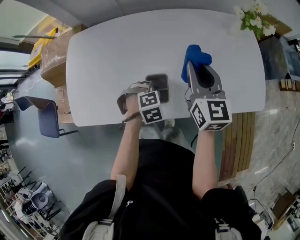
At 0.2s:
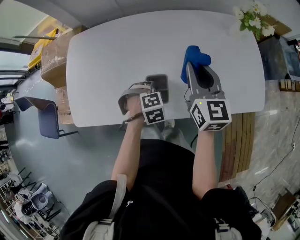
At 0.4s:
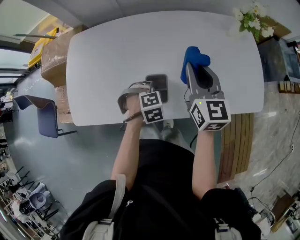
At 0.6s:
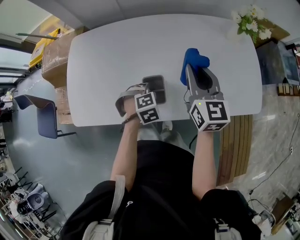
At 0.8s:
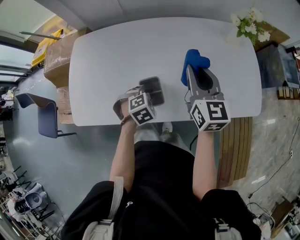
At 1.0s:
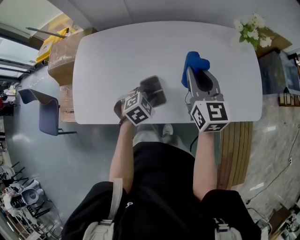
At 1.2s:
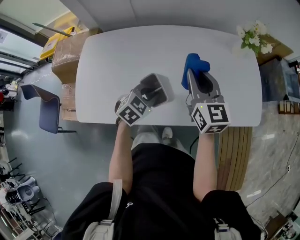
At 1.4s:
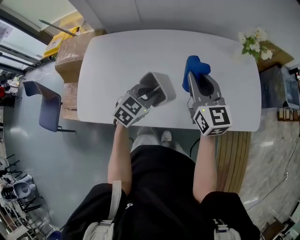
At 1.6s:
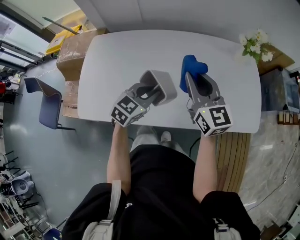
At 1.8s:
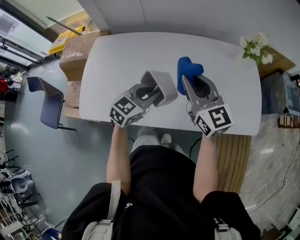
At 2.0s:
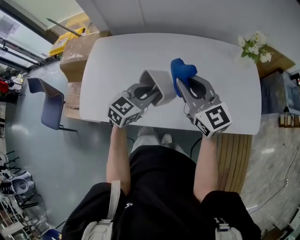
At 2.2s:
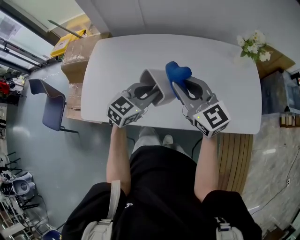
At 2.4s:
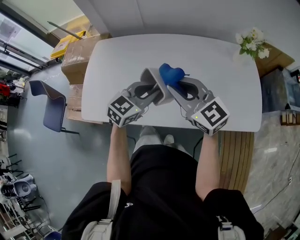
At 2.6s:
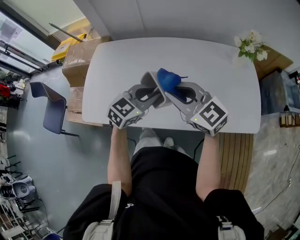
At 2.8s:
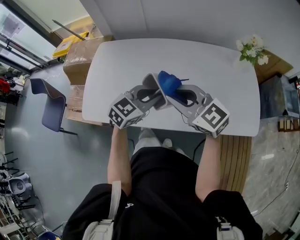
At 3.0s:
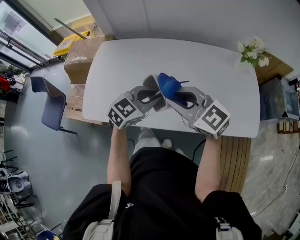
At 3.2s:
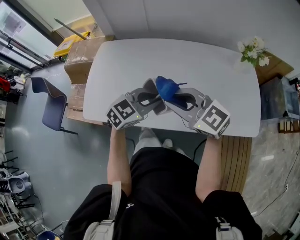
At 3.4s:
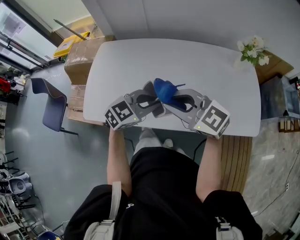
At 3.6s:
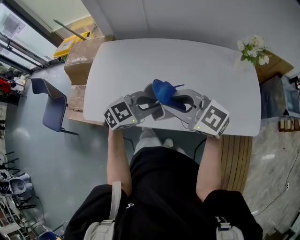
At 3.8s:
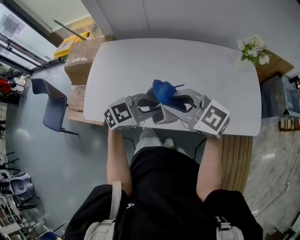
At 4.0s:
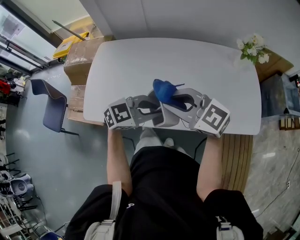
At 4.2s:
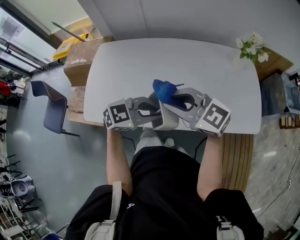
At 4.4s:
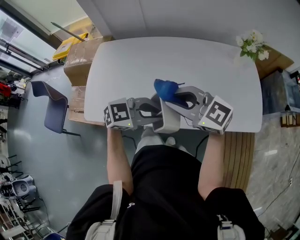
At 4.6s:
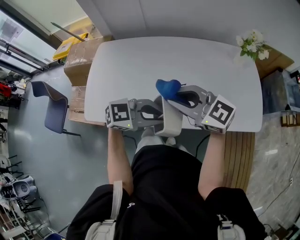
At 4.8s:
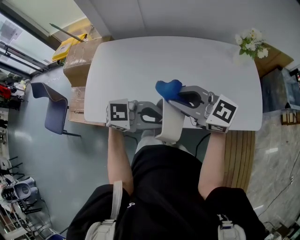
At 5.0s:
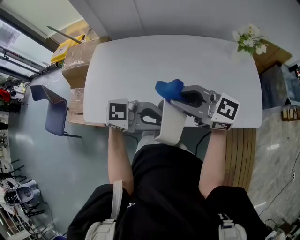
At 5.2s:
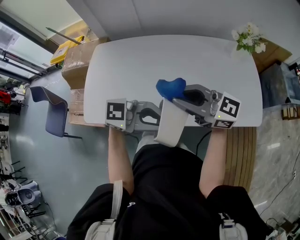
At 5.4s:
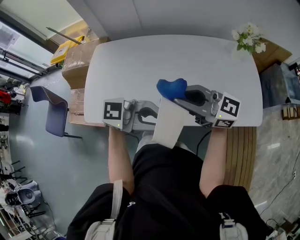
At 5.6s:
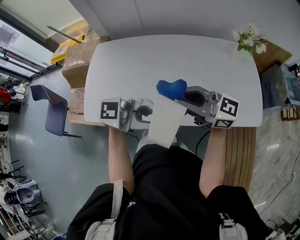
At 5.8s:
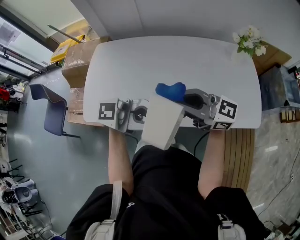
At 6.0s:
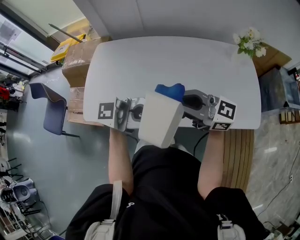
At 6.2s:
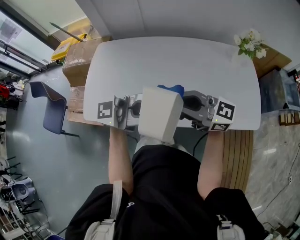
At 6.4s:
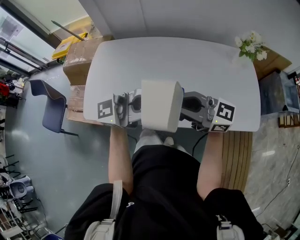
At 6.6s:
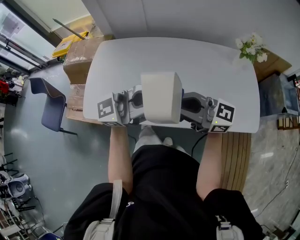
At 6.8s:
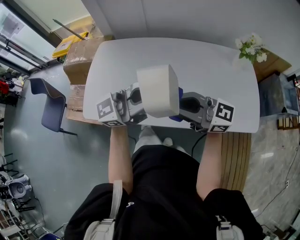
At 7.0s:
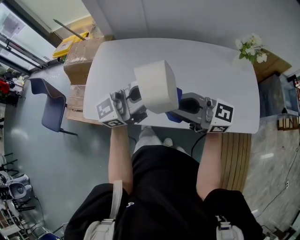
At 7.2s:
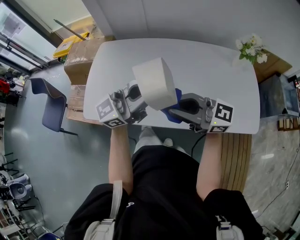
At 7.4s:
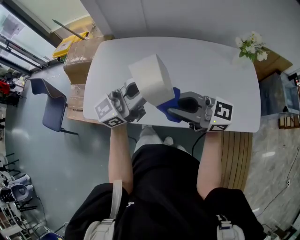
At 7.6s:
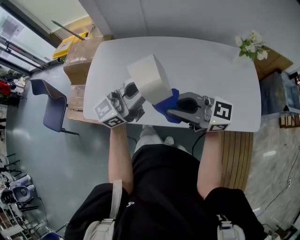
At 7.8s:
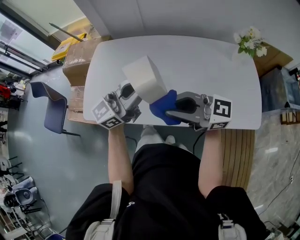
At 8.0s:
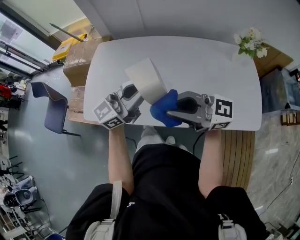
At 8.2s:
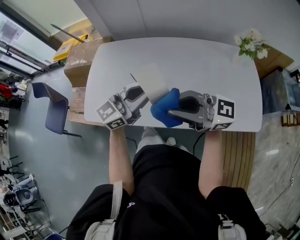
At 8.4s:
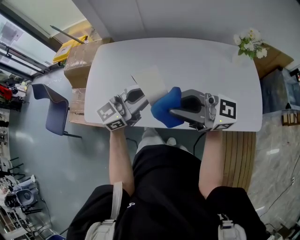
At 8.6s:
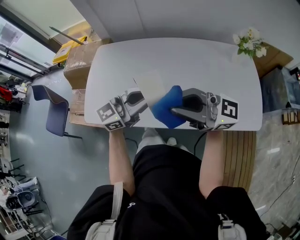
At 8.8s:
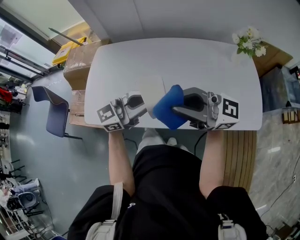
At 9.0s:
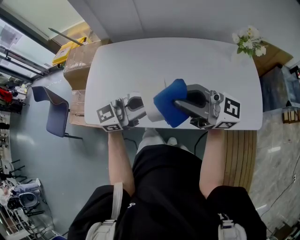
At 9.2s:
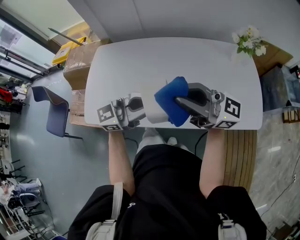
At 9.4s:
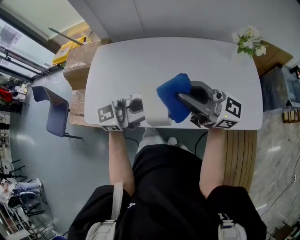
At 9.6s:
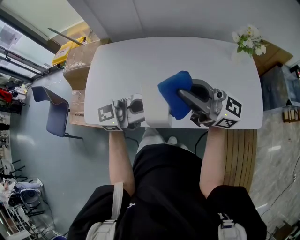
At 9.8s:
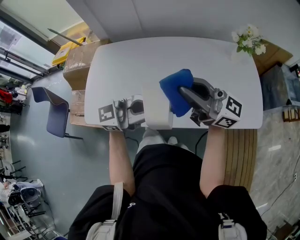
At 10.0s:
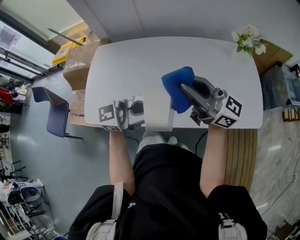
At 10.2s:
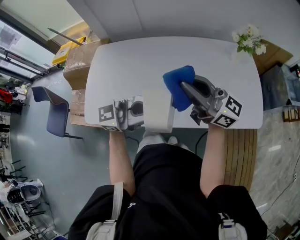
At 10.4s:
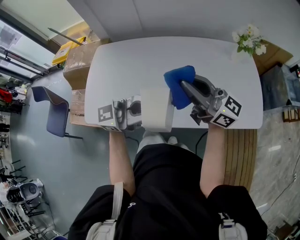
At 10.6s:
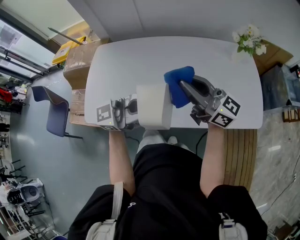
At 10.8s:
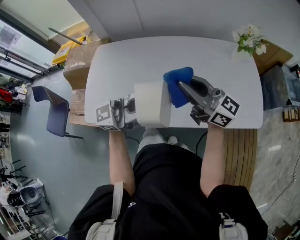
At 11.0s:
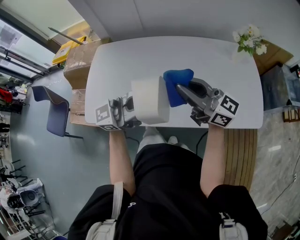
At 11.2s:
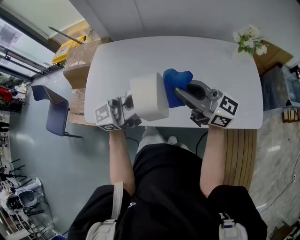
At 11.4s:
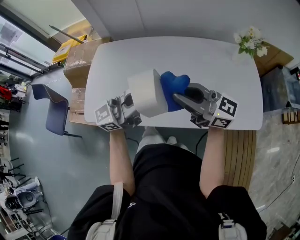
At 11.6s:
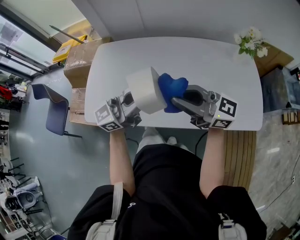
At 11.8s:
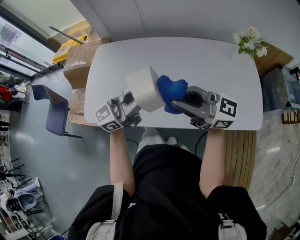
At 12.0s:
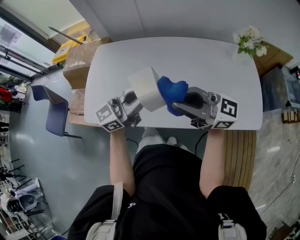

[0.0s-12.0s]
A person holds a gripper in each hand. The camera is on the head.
0.0s to 1.6s: The right gripper travels upward by some 5 cm. The left gripper goes approximately 15 cm upward, and tips its fingers upward by approximately 40 degrees.
1.6s to 3.0s: The left gripper heads upward, covering some 5 cm. The right gripper goes some 15 cm backward and to the left, and turns by about 40 degrees.
3.0s to 4.4s: The left gripper moves roughly 10 cm, and rotates approximately 30 degrees.
4.4s to 6.0s: The right gripper swivels about 20 degrees; the left gripper is displaced upward by approximately 10 cm, and angles its fingers upward, by some 40 degrees.
6.0s to 7.6s: The left gripper shifts by roughly 10 cm, and swivels approximately 40 degrees.
7.6s to 9.0s: The right gripper is displaced upward by about 5 cm. The left gripper shifts some 5 cm downward, and changes its angle by about 20 degrees.
9.0s to 10.4s: The left gripper shifts by approximately 5 cm. Meanwhile the right gripper changes place by roughly 5 cm, and rotates approximately 20 degrees.
10.4s to 12.0s: The right gripper shifts by roughly 5 cm, and swivels about 20 degrees. Meanwhile the left gripper changes place by roughly 10 cm, and rotates approximately 30 degrees.

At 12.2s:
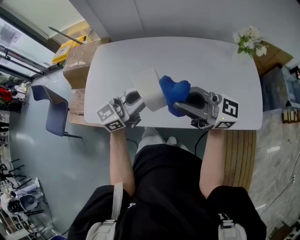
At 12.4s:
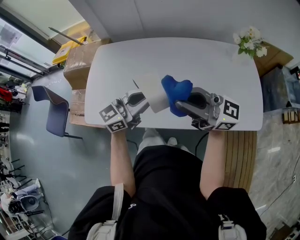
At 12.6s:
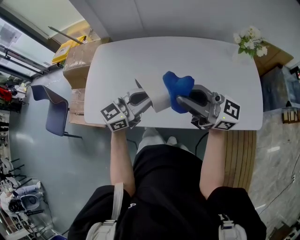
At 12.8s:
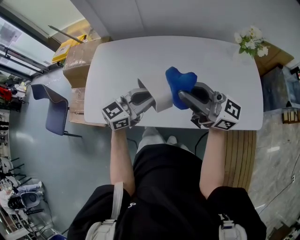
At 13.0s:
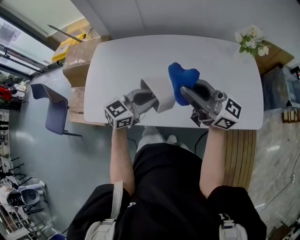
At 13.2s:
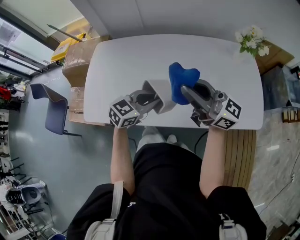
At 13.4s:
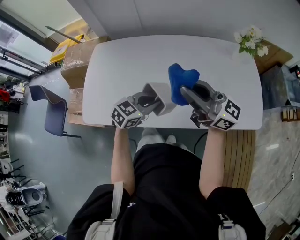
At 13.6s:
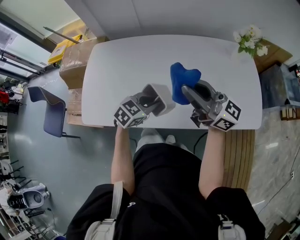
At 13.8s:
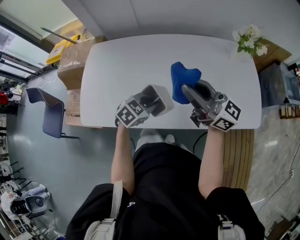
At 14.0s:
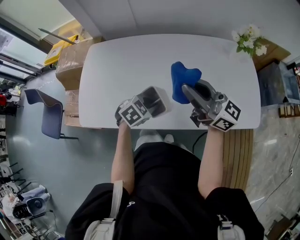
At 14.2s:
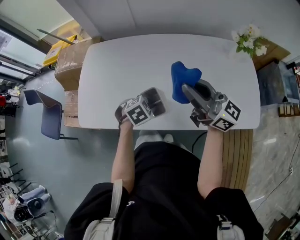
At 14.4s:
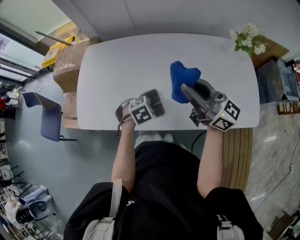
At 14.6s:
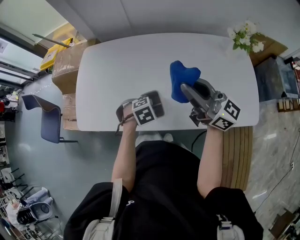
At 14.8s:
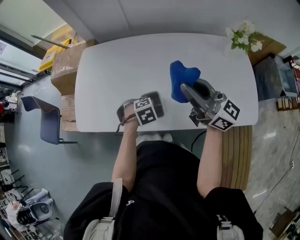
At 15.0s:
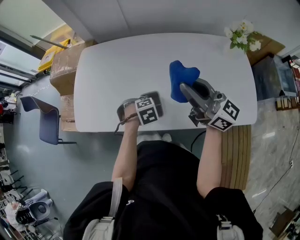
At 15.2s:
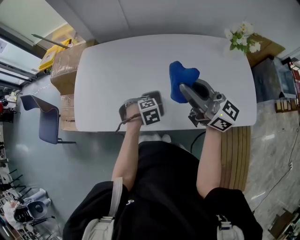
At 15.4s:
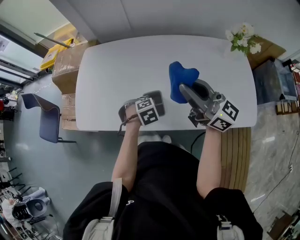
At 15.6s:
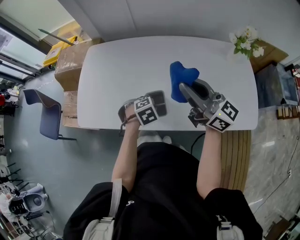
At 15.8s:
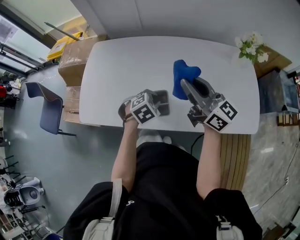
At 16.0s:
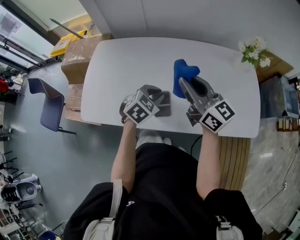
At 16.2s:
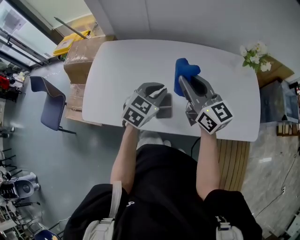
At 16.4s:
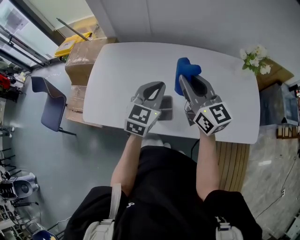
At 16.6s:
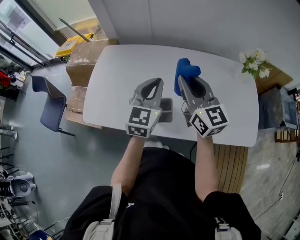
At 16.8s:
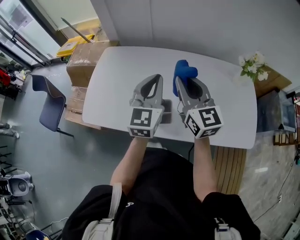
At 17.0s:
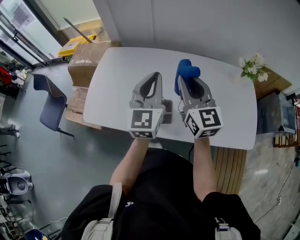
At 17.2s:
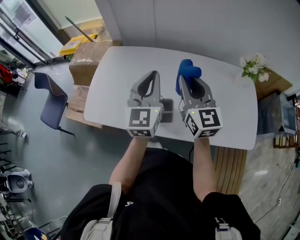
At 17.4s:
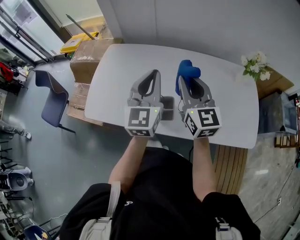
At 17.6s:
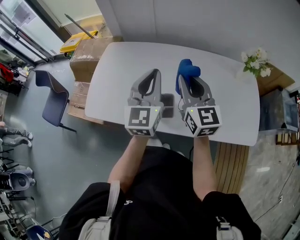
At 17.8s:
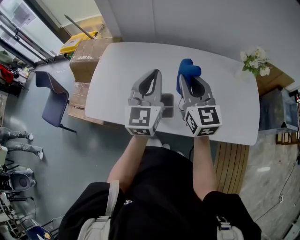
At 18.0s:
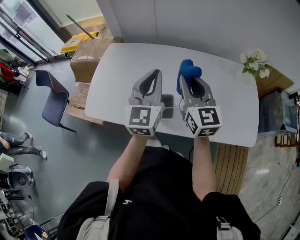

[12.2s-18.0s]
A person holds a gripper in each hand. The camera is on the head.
12.2s to 13.6s: The right gripper ends up roughly 5 cm from where it was, and swivels about 20 degrees. The left gripper shifts some 15 cm downward, and tilts its fingers about 50 degrees downward.
13.6s to 15.0s: The left gripper shifts roughly 10 cm downward, and tilts its fingers about 40 degrees downward.
15.0s to 16.6s: The right gripper changes place by roughly 5 cm, and swivels about 30 degrees. Meanwhile the left gripper shifts some 25 cm upward, and tilts its fingers about 70 degrees upward.
16.6s to 18.0s: The left gripper moves upward, approximately 5 cm.

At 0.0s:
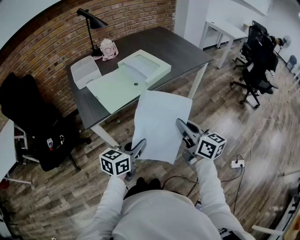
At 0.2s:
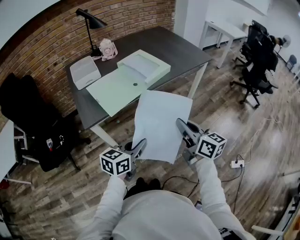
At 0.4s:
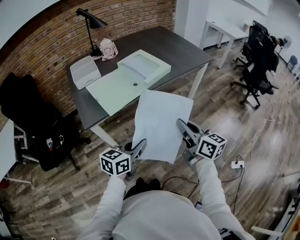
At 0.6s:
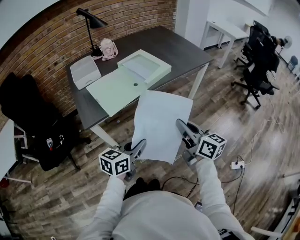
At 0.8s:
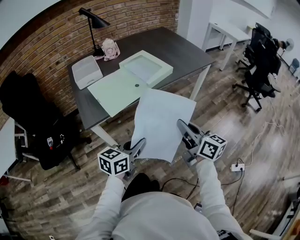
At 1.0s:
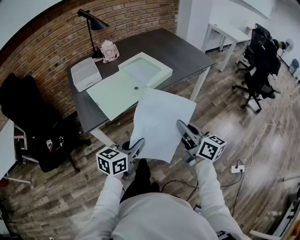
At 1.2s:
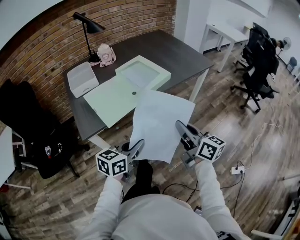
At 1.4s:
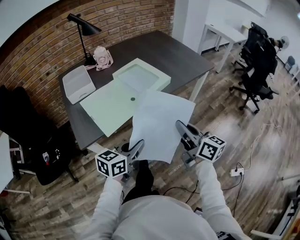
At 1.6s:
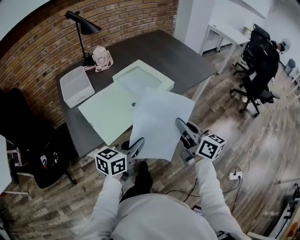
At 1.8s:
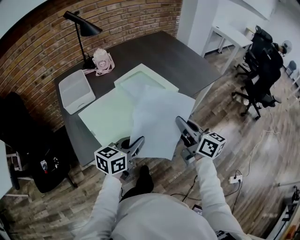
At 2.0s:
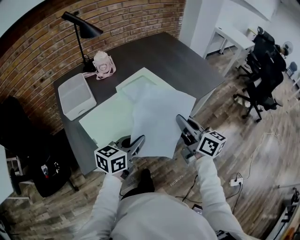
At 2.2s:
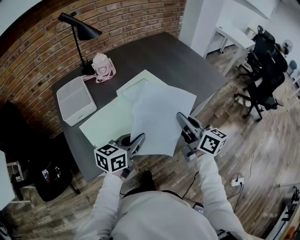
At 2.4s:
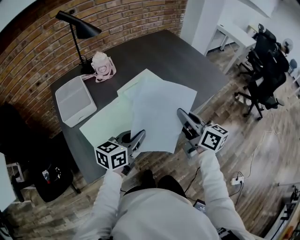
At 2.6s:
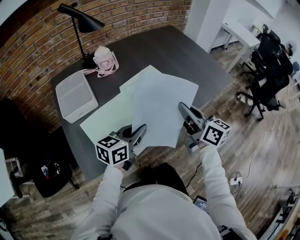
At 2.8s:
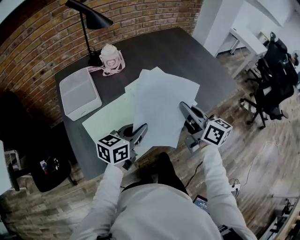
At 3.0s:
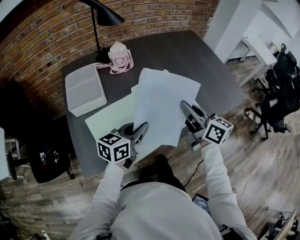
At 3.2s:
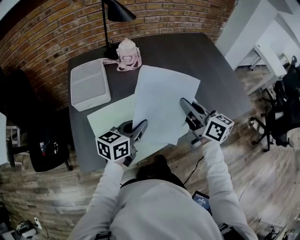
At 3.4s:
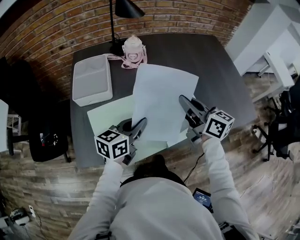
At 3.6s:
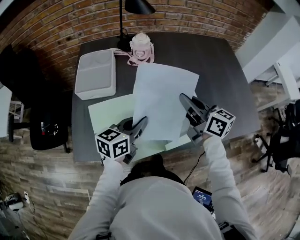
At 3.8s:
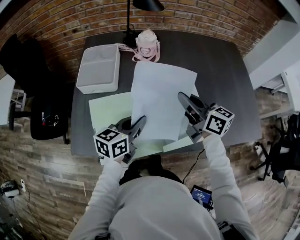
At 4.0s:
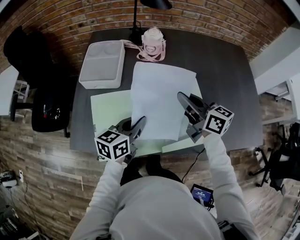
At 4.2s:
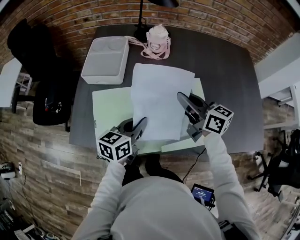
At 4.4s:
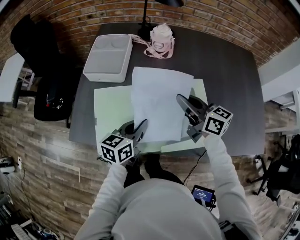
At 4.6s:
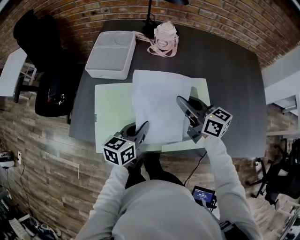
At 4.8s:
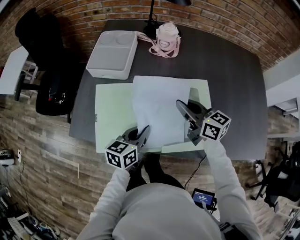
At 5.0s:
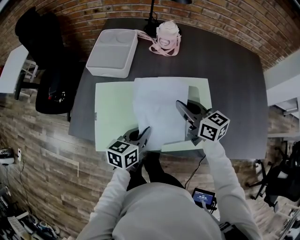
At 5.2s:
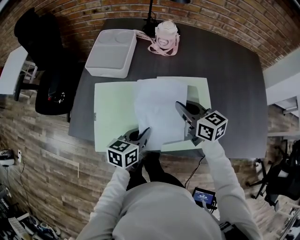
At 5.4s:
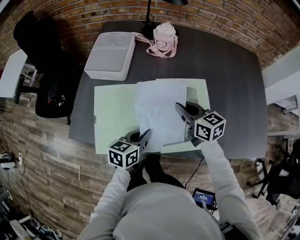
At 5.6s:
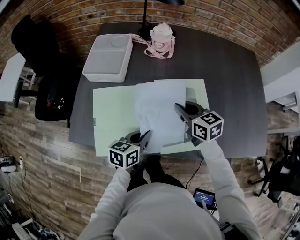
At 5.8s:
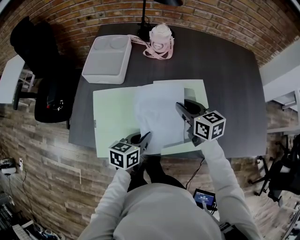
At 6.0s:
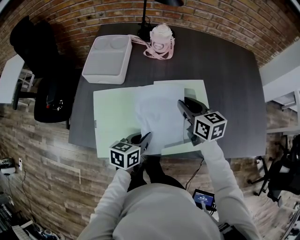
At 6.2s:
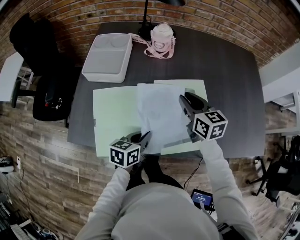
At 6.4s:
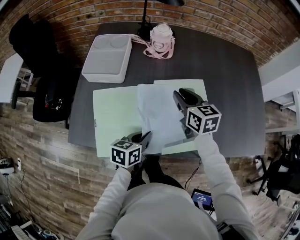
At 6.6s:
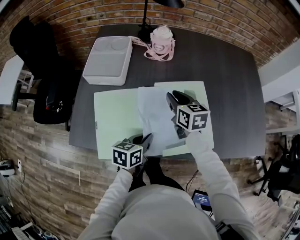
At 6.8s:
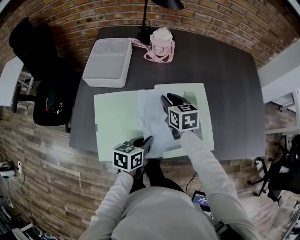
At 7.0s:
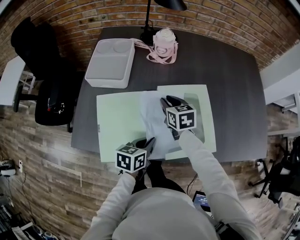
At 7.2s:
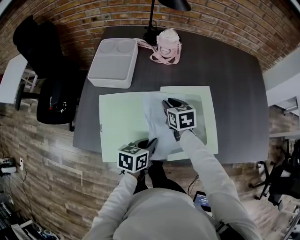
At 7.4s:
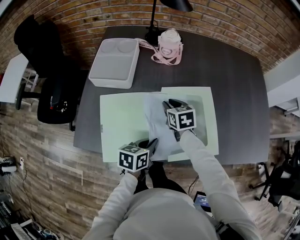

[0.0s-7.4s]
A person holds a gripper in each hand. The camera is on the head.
0.0s to 1.4s: The grippers both shift forward by about 10 cm.
1.4s to 3.0s: The right gripper travels forward and to the left by some 35 cm, while the left gripper is displaced forward by approximately 30 cm.
3.0s to 4.4s: The right gripper changes place by roughly 15 cm, and rotates approximately 40 degrees. Meanwhile the left gripper moves downward, approximately 5 cm, and changes its angle by approximately 40 degrees.
4.4s to 6.0s: Both grippers travel together downward, about 5 cm. The right gripper changes its angle by approximately 20 degrees, and opens its fingers.
6.0s to 7.4s: The right gripper travels downward and to the left by about 10 cm.
